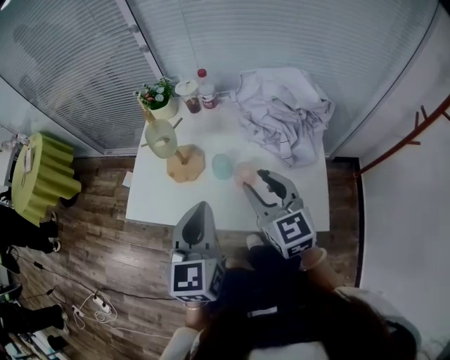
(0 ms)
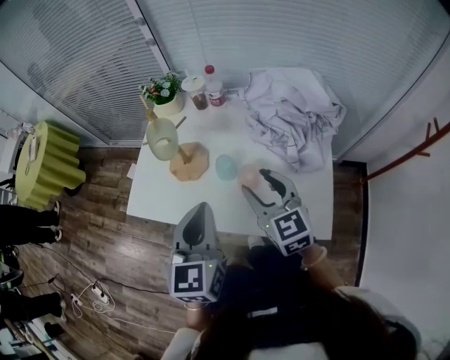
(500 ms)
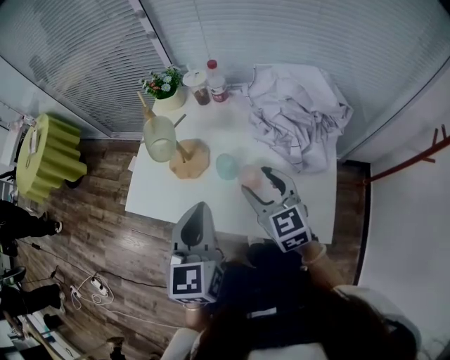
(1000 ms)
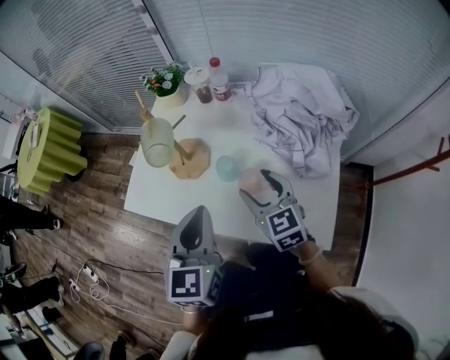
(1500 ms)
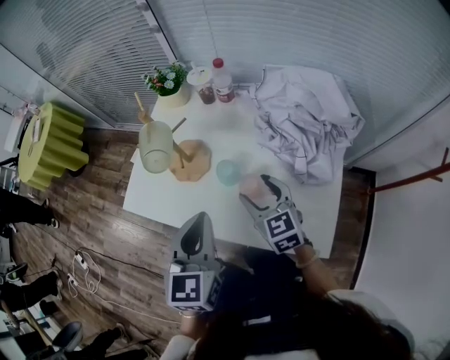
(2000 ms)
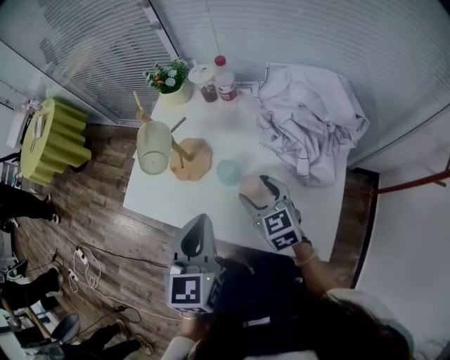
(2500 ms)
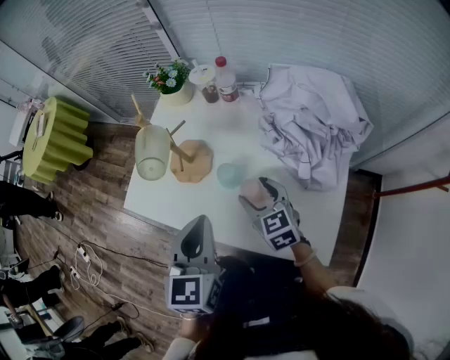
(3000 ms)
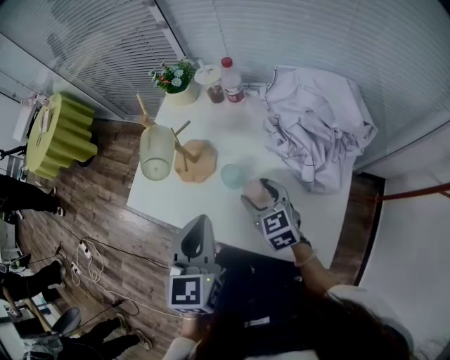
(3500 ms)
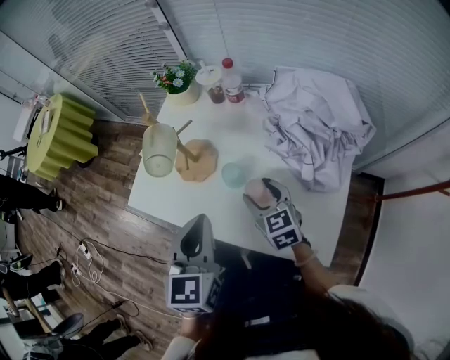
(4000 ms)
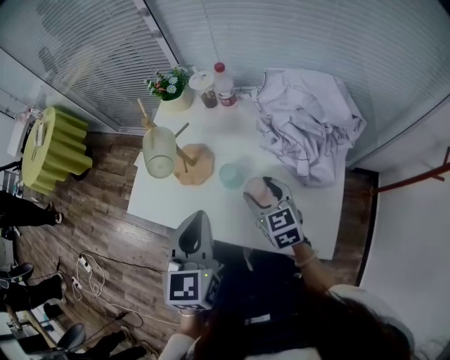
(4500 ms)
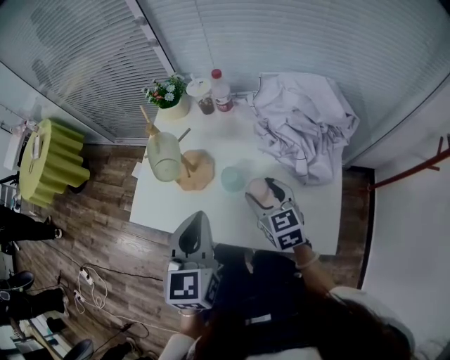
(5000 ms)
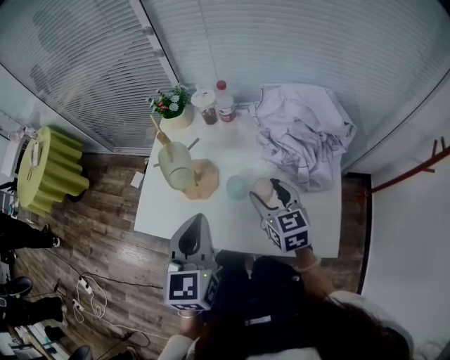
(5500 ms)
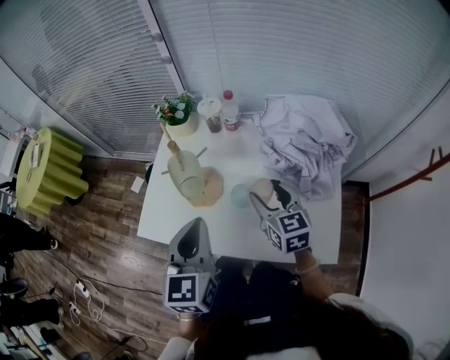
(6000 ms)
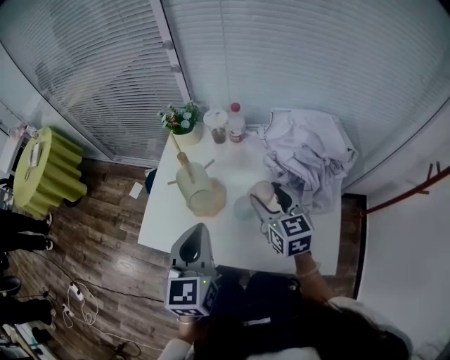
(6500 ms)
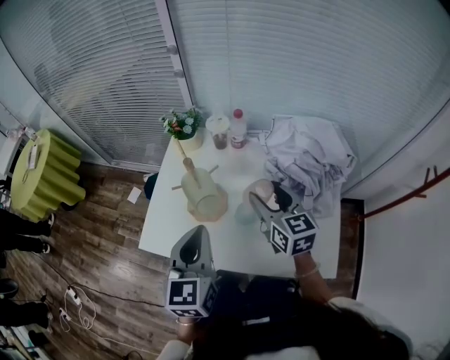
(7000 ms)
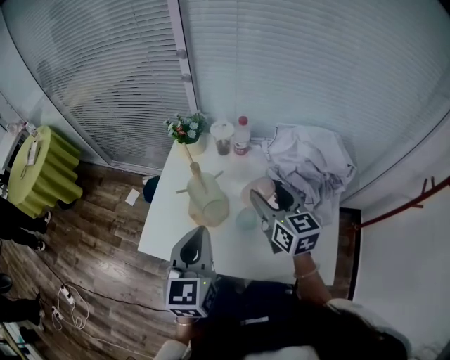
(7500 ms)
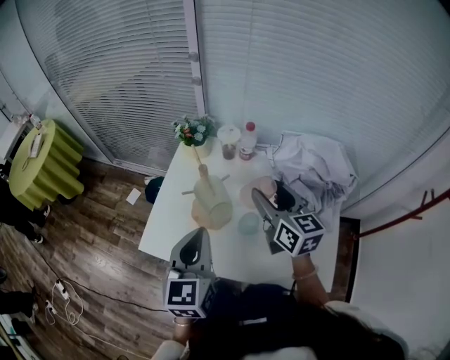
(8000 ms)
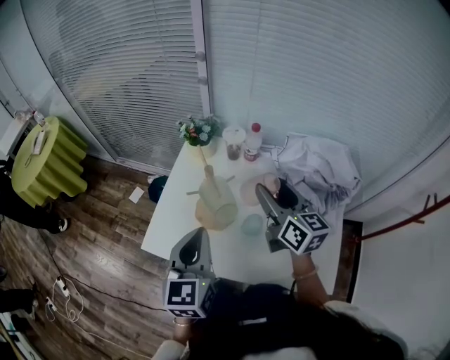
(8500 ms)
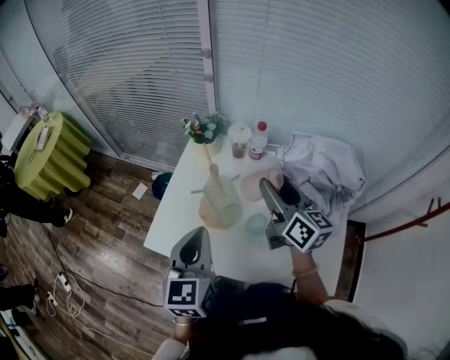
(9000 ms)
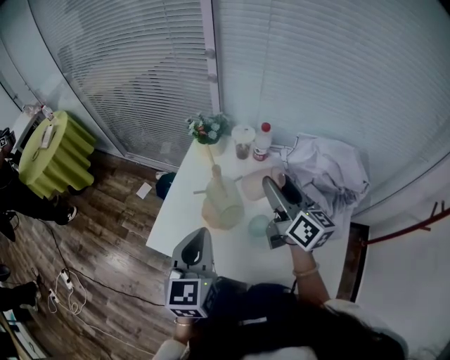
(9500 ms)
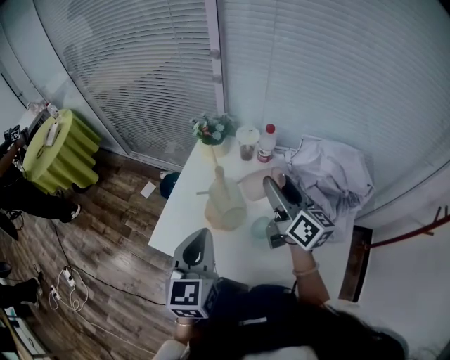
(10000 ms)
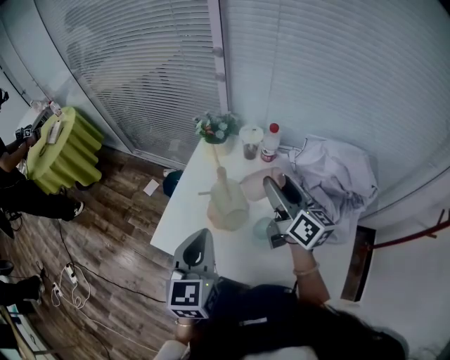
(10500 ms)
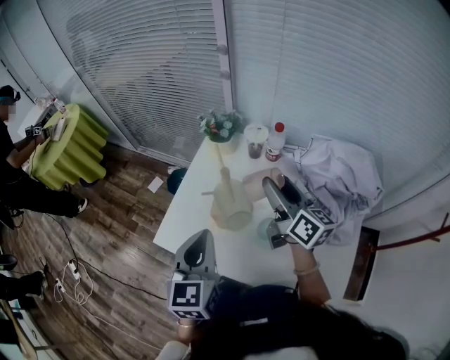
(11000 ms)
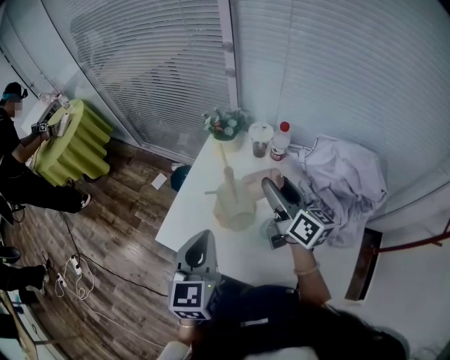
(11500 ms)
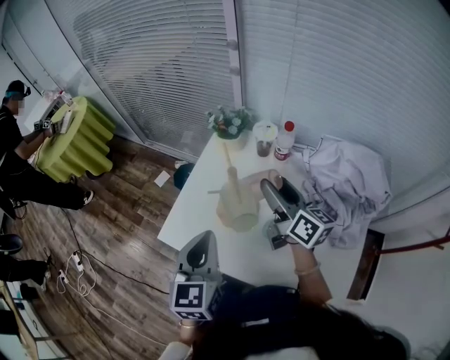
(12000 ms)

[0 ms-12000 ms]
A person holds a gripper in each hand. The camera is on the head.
0 ms to 2000 ms: The right gripper shifts about 15 cm downward and forward, and opens its fingers.
2000 ms to 4000 ms: The grippers move only a little.
4000 ms to 6000 ms: The right gripper shifts roughly 10 cm upward. The left gripper travels to the left by roughly 5 cm.
6000 ms to 8000 ms: The right gripper moves upward and forward, about 10 cm, while the left gripper shifts by approximately 5 cm.
8000 ms to 10000 ms: The right gripper swivels approximately 20 degrees.
10000 ms to 12000 ms: The right gripper shifts by about 5 cm.

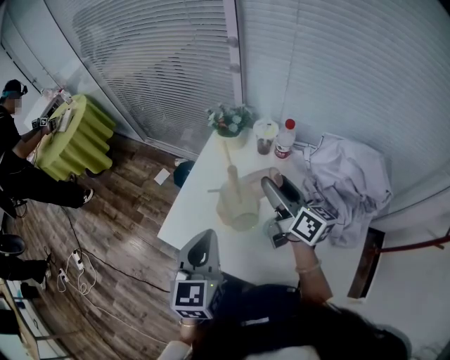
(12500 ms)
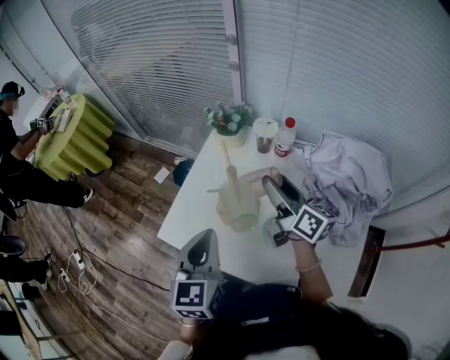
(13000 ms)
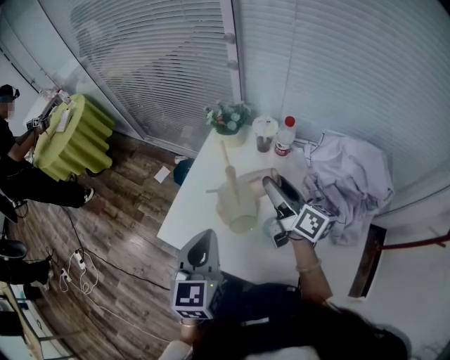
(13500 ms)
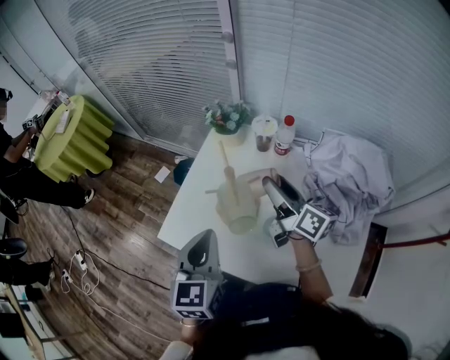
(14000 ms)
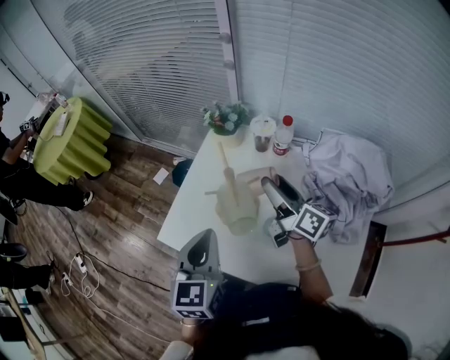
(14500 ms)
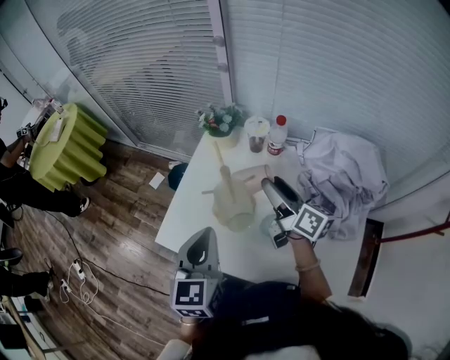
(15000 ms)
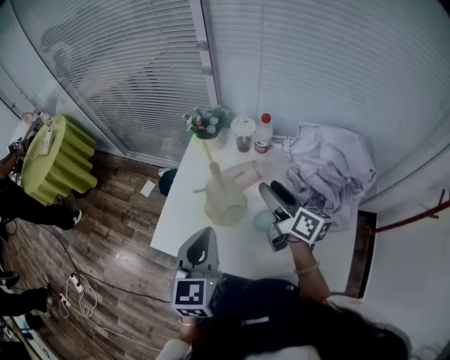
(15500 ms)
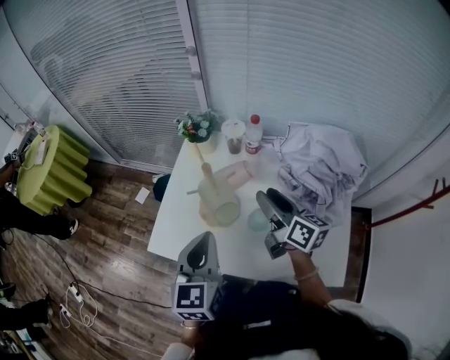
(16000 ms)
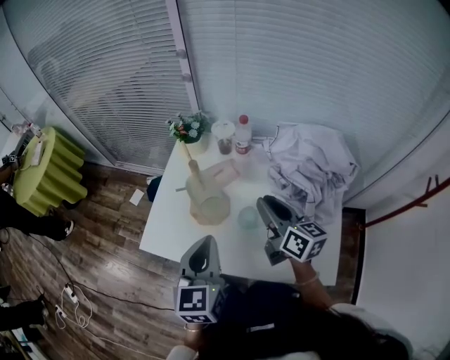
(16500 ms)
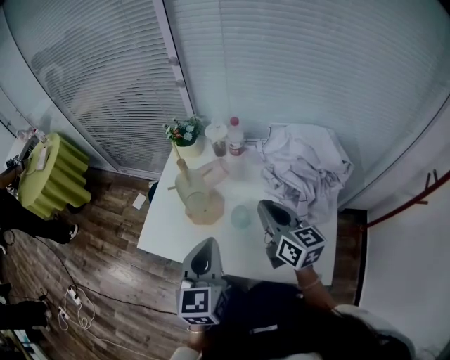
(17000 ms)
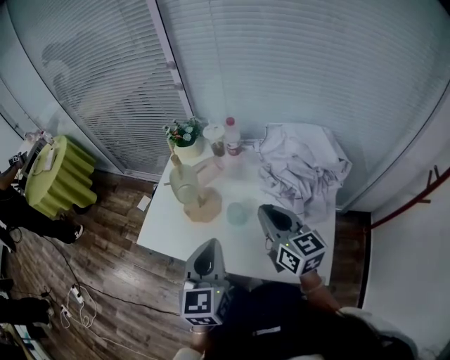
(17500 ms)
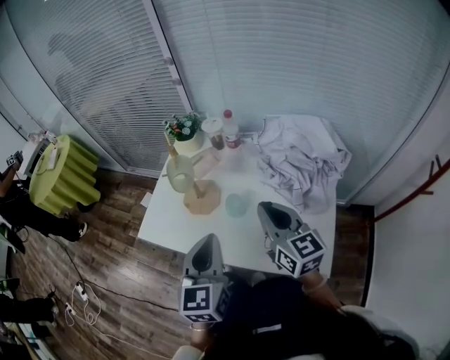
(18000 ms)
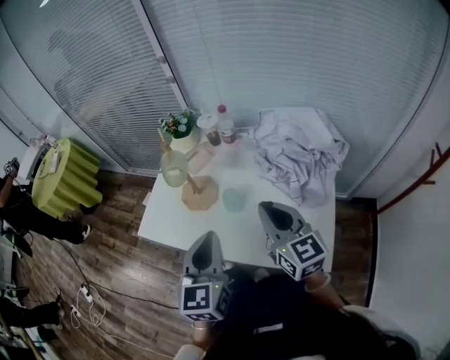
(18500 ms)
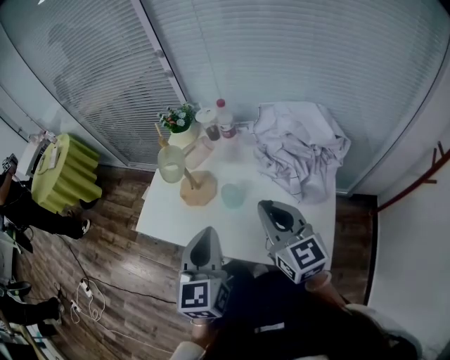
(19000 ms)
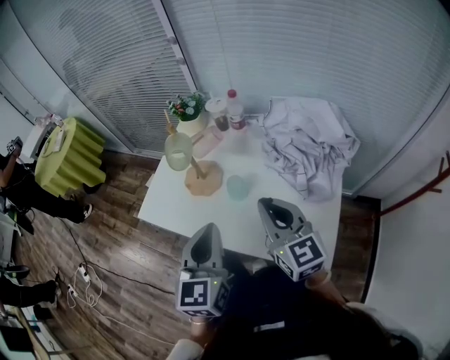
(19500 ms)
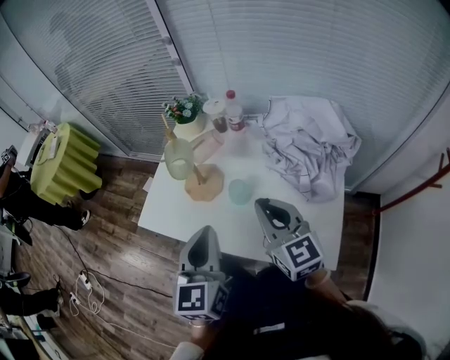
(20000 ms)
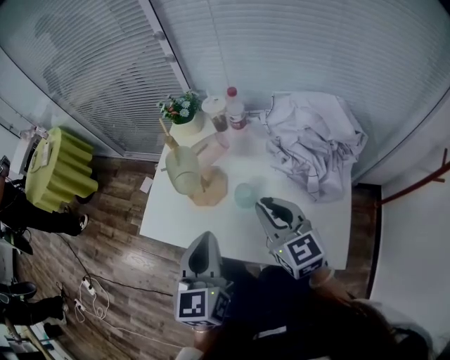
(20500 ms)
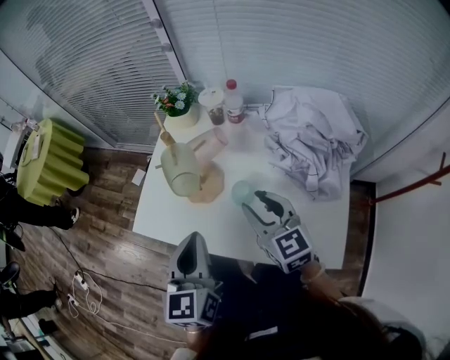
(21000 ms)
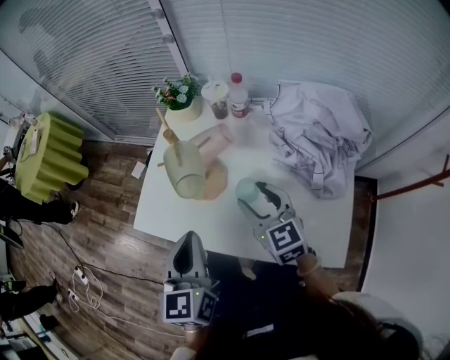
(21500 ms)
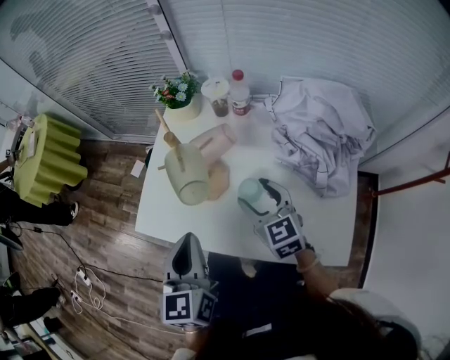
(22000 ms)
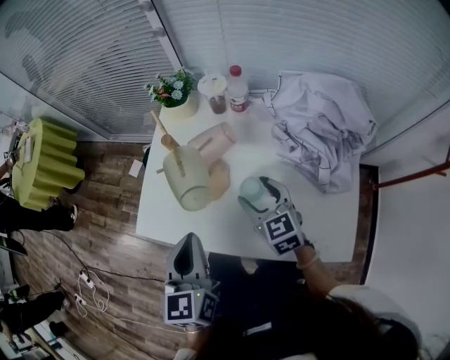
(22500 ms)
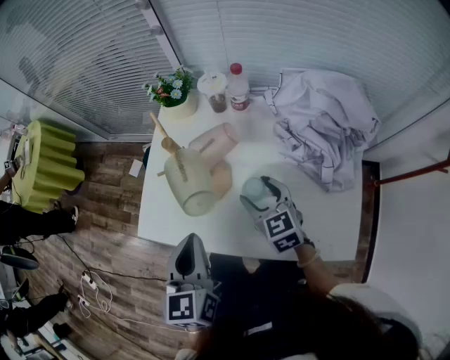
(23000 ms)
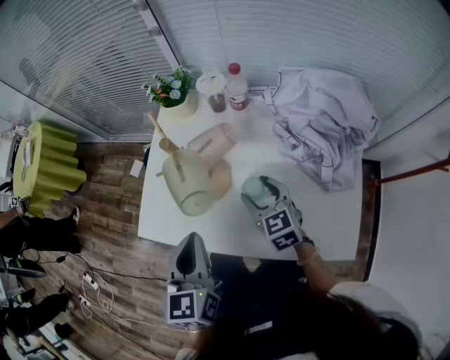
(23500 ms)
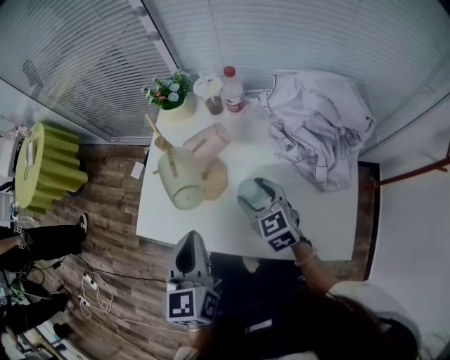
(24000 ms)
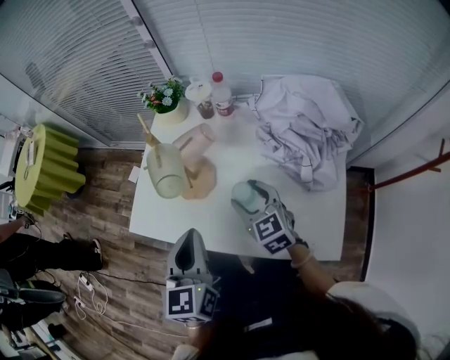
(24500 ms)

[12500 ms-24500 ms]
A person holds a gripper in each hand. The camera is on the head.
12500 ms to 14500 ms: The grippers move only a little.
14500 ms to 16500 ms: The left gripper moves to the right and backward, about 5 cm; the right gripper is displaced backward by some 10 cm, rotates approximately 20 degrees, and closes its fingers.
16500 ms to 18500 ms: The left gripper moves backward and to the right, some 10 cm. Meanwhile the right gripper goes about 10 cm backward, and rotates some 30 degrees.
18500 ms to 20500 ms: The left gripper ends up roughly 5 cm from where it was; the right gripper changes place by some 10 cm.
20500 ms to 22500 ms: The left gripper moves to the left, about 5 cm; the right gripper moves downward and forward, some 15 cm, and opens up.
22500 ms to 24500 ms: The left gripper ends up roughly 5 cm from where it was.

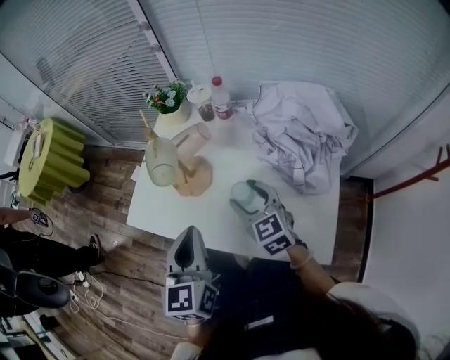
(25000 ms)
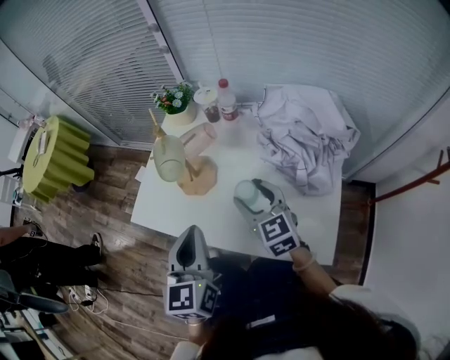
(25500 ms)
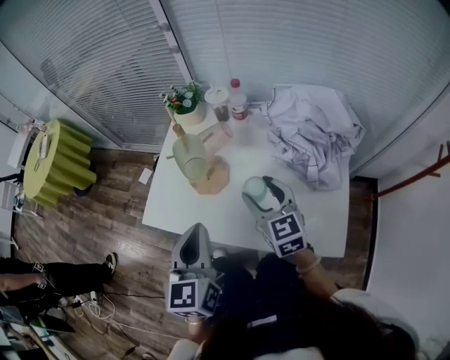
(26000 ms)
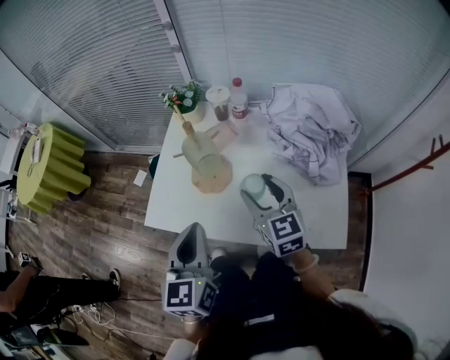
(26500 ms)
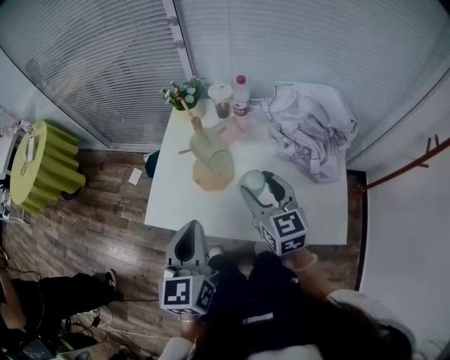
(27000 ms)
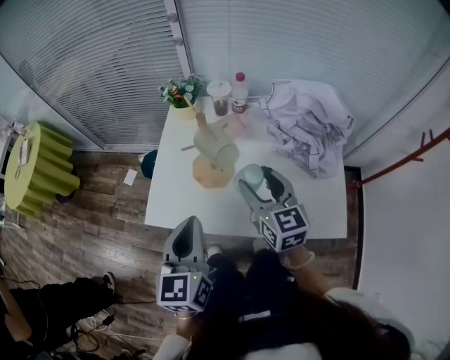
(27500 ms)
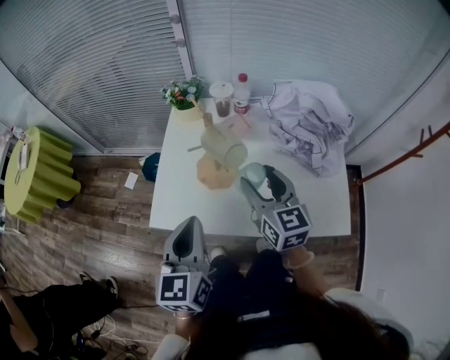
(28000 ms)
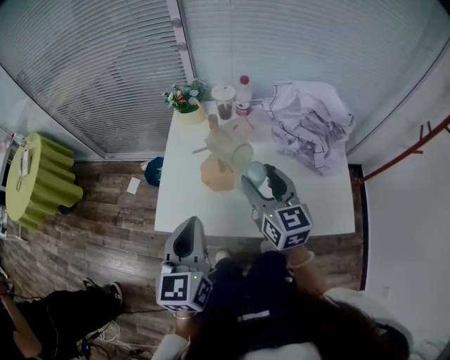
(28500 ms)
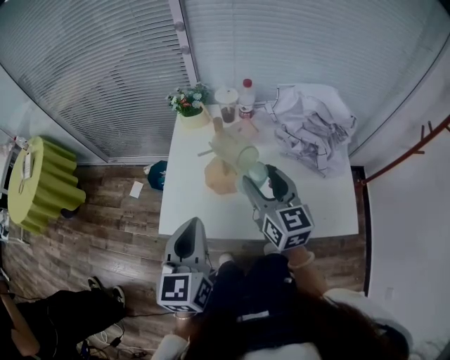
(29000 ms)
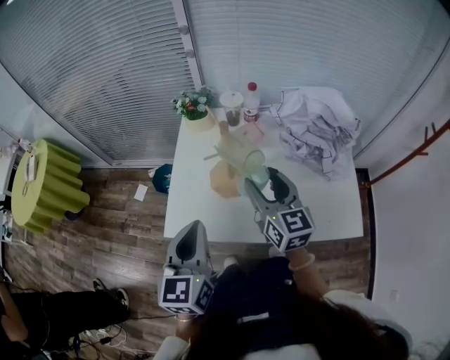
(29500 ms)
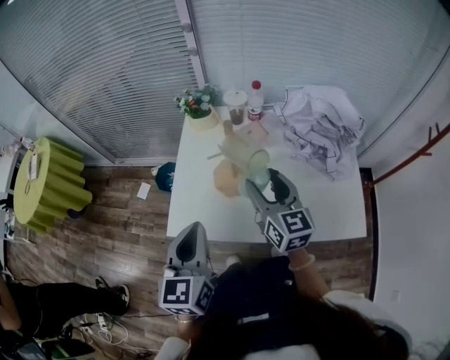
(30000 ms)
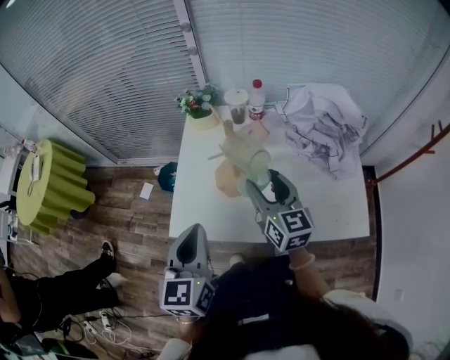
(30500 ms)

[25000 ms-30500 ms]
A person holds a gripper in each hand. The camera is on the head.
25000 ms to 27000 ms: The right gripper shifts about 10 cm upward and to the left. The left gripper heads to the left, covering roughly 10 cm.
27000 ms to 28500 ms: The left gripper travels to the left by about 5 cm.
28500 ms to 30500 ms: The grippers move only a little.
